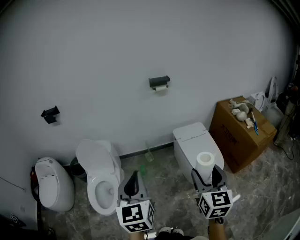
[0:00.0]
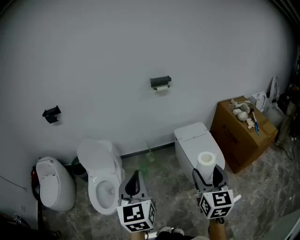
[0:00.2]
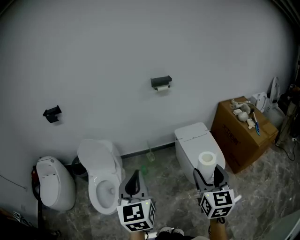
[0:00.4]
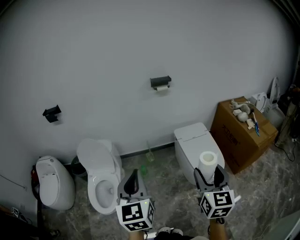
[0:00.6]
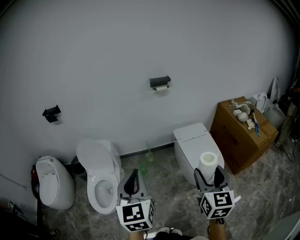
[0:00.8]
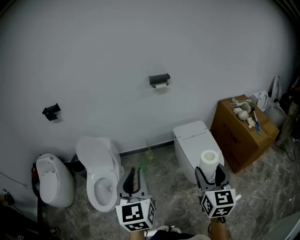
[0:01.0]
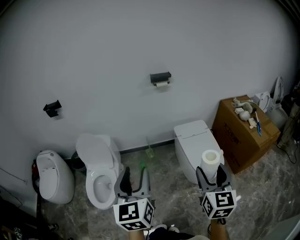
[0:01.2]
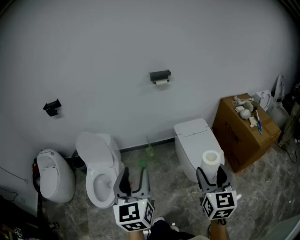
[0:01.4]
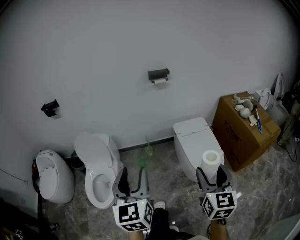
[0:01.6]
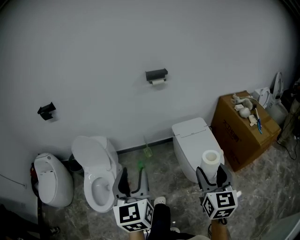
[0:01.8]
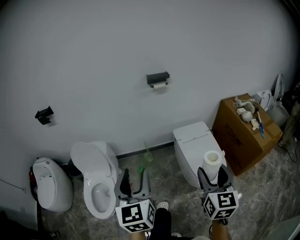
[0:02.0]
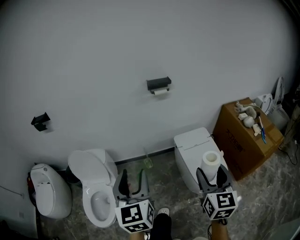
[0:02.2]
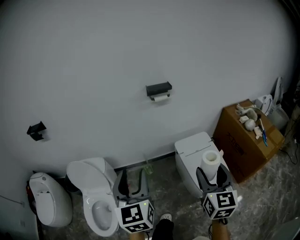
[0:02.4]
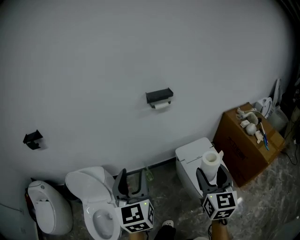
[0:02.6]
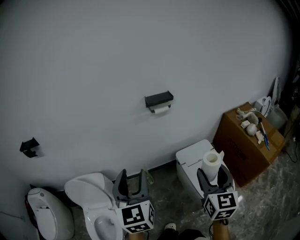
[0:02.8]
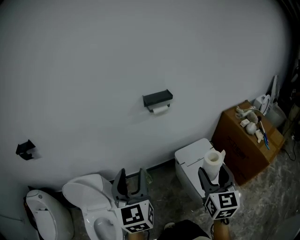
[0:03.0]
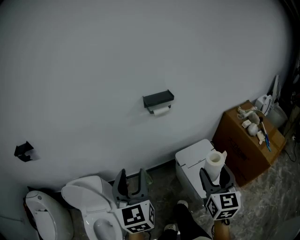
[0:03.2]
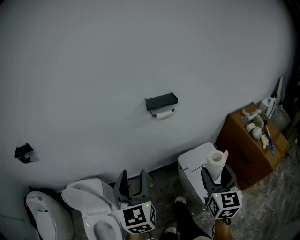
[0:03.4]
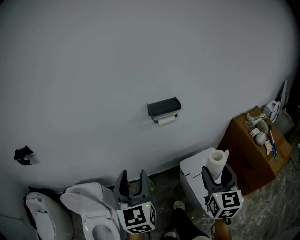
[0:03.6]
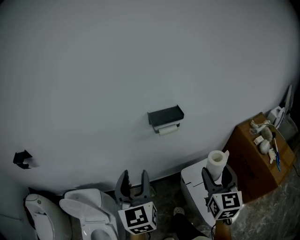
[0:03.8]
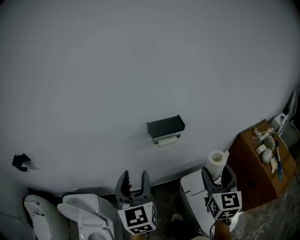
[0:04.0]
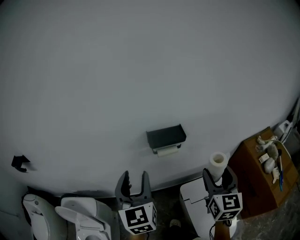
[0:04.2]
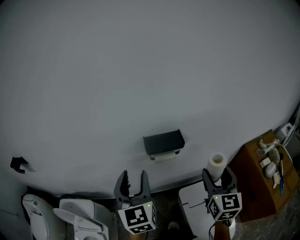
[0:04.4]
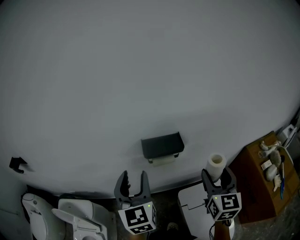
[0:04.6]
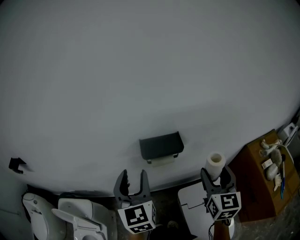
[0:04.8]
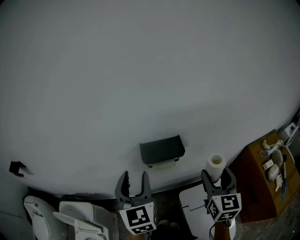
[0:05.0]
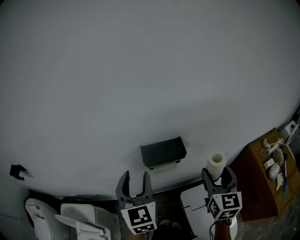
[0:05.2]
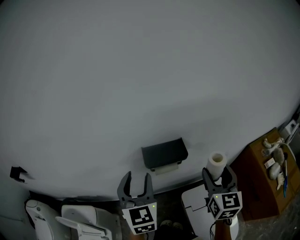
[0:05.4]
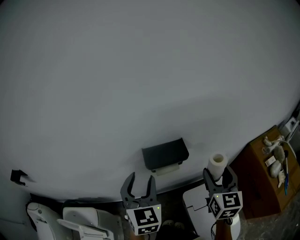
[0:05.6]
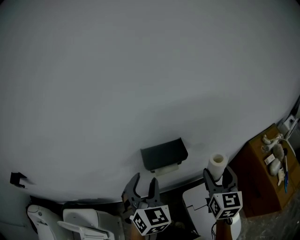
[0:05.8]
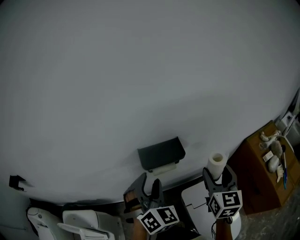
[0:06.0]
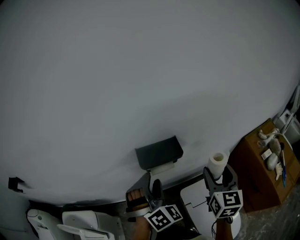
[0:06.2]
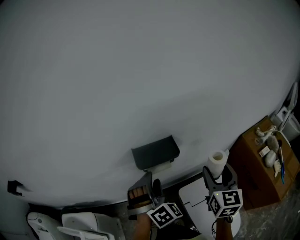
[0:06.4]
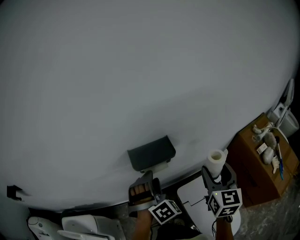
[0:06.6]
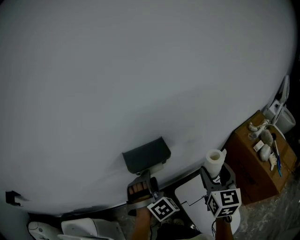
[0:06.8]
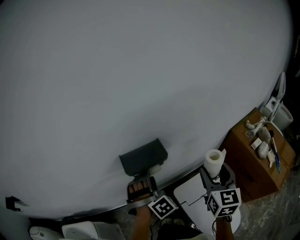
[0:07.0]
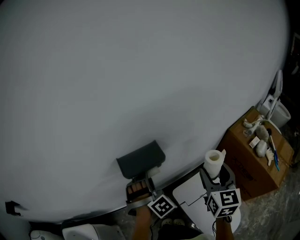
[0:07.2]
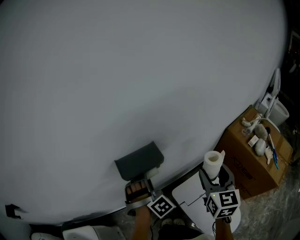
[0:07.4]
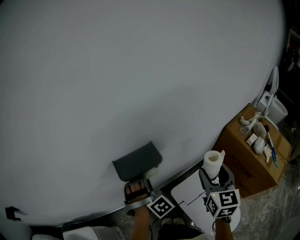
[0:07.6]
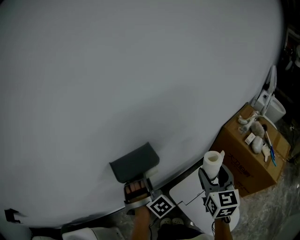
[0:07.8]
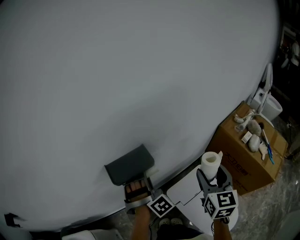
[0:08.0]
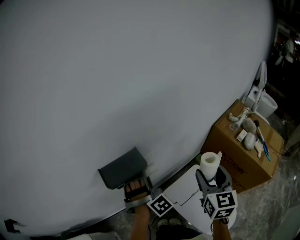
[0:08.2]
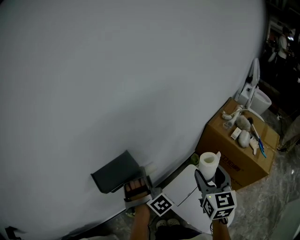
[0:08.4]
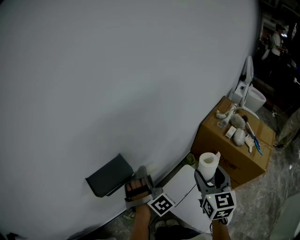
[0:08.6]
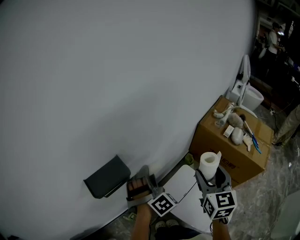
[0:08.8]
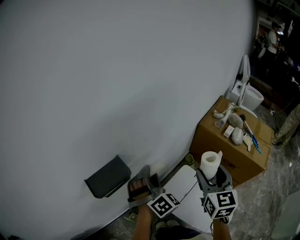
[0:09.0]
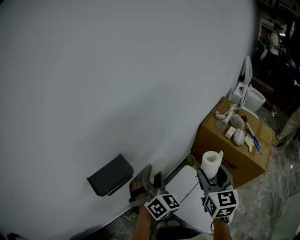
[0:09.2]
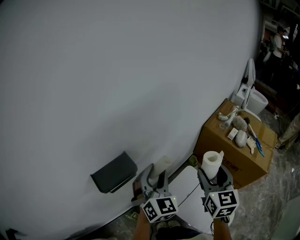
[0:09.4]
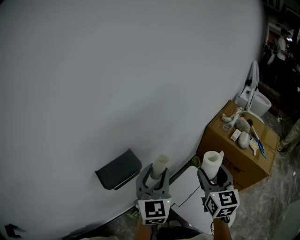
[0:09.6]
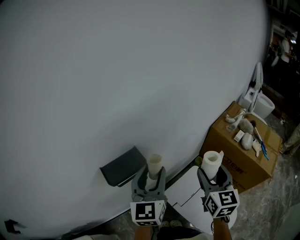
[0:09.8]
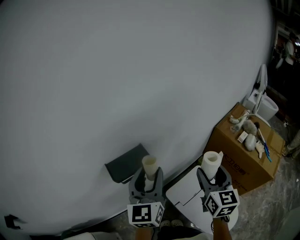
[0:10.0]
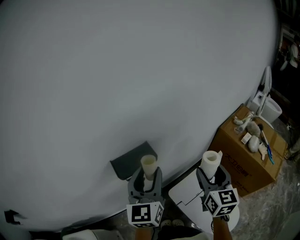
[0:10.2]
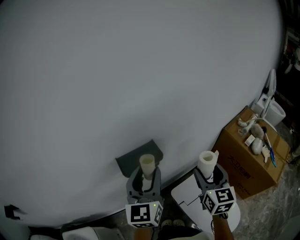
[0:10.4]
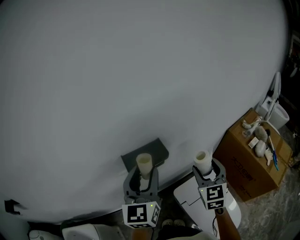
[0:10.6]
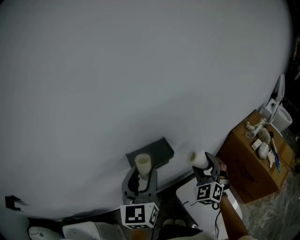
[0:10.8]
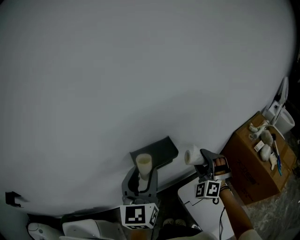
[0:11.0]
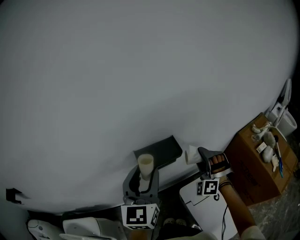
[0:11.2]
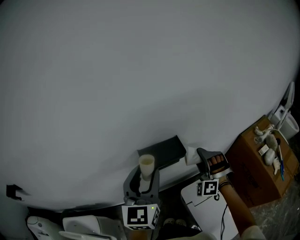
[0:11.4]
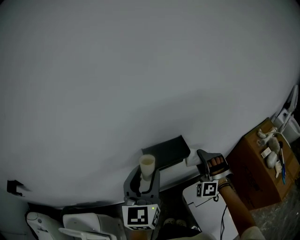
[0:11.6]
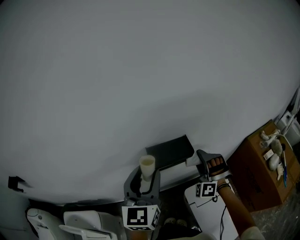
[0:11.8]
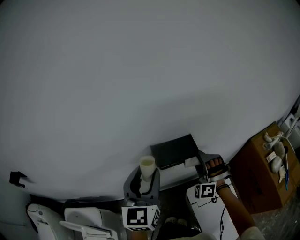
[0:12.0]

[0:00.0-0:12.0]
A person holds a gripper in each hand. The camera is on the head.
0:00.0 to 0:01.6: The left gripper opens up; the right gripper shifts about 5 cm to the right.
0:01.6 to 0:03.0: Both grippers move forward, about 35 cm.
0:03.0 to 0:04.4: Both grippers travel together forward, about 35 cm.
0:04.4 to 0:06.0: The right gripper shifts roughly 5 cm forward; the left gripper is displaced forward, to the right and downward by roughly 10 cm, and twists roughly 40 degrees clockwise, seen from behind.
0:06.0 to 0:07.6: The left gripper is displaced downward and forward by about 10 cm, and swivels roughly 40 degrees. The right gripper goes approximately 5 cm to the right.
0:07.6 to 0:09.0: The left gripper goes about 15 cm to the right, and swivels roughly 30 degrees. The right gripper moves to the right, roughly 10 cm.
0:09.0 to 0:10.4: The right gripper travels to the left by about 10 cm. Meanwhile the left gripper heads to the left, upward and backward, covering some 20 cm, and rolls counterclockwise, seen from behind, by about 60 degrees.
0:10.4 to 0:12.0: The right gripper travels to the left, forward and downward by approximately 20 cm, and twists approximately 90 degrees counterclockwise, seen from behind. Meanwhile the left gripper goes some 10 cm to the left.

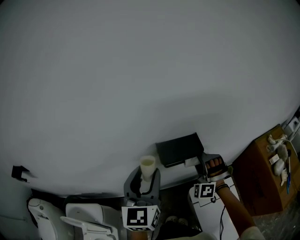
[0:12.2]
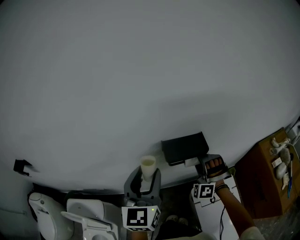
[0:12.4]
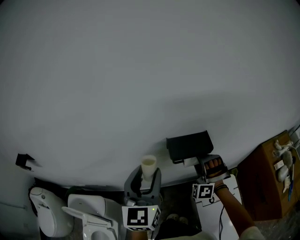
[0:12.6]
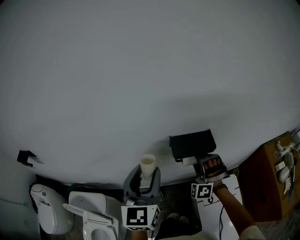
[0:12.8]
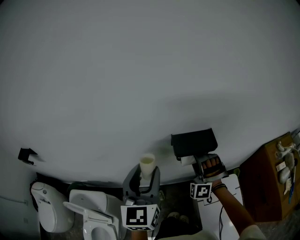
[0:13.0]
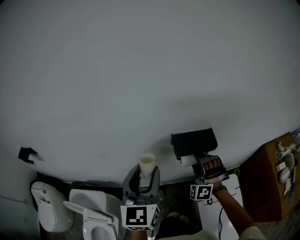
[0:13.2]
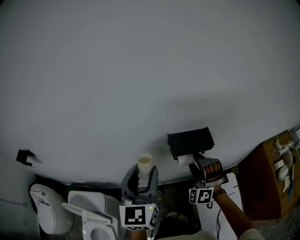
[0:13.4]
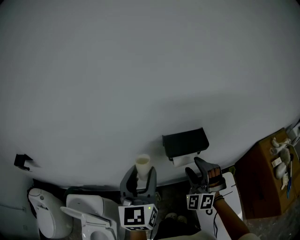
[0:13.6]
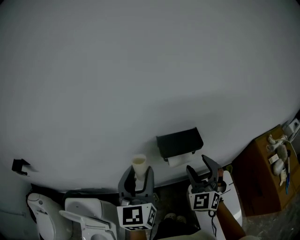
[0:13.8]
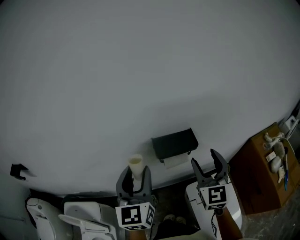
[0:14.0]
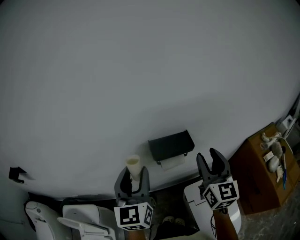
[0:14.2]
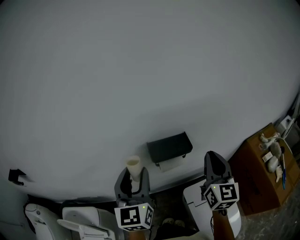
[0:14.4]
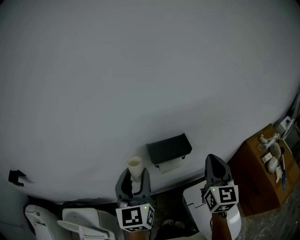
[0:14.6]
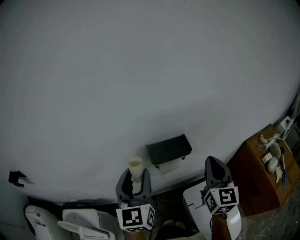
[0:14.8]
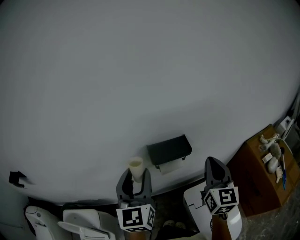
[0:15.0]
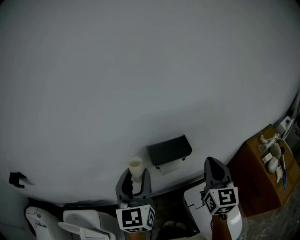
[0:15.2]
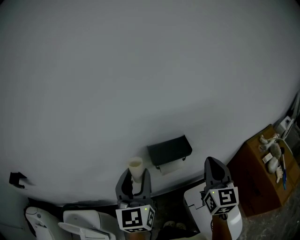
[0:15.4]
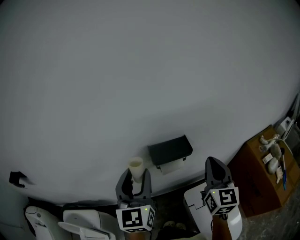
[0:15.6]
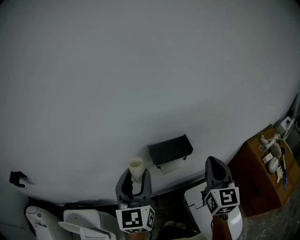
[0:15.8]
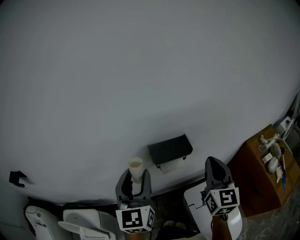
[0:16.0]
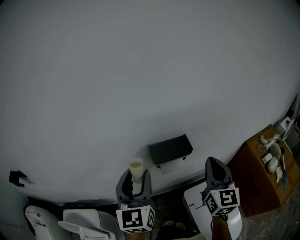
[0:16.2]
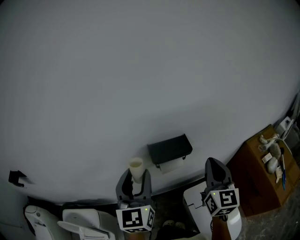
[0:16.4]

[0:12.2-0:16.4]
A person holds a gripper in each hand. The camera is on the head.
0:12.2 to 0:13.6: The right gripper travels backward and to the left by some 10 cm, and rotates roughly 20 degrees.
0:13.6 to 0:15.0: The right gripper heads to the right and upward, covering roughly 15 cm, rolls clockwise, seen from behind, by roughly 70 degrees, and closes its fingers.
0:15.0 to 0:16.4: Neither gripper changes place.

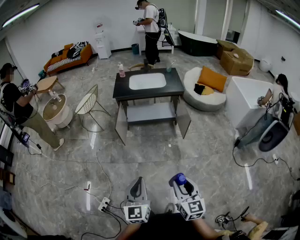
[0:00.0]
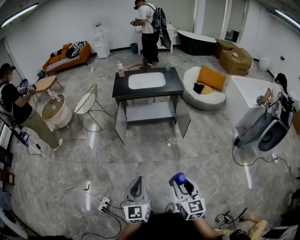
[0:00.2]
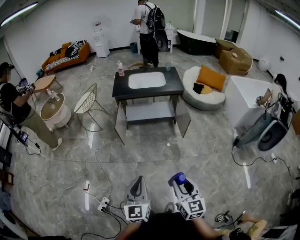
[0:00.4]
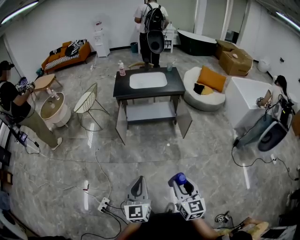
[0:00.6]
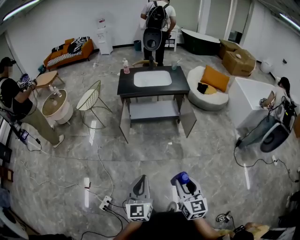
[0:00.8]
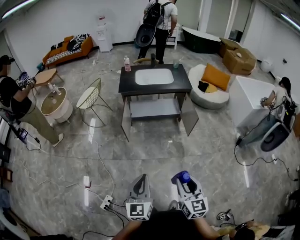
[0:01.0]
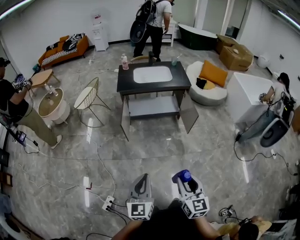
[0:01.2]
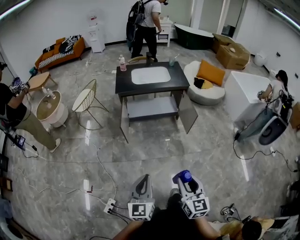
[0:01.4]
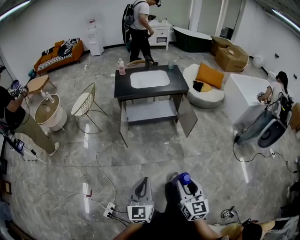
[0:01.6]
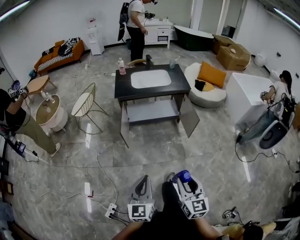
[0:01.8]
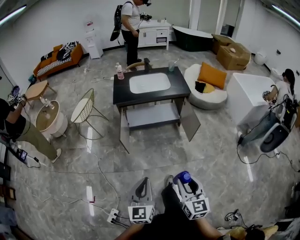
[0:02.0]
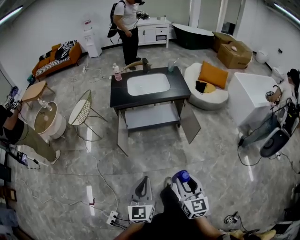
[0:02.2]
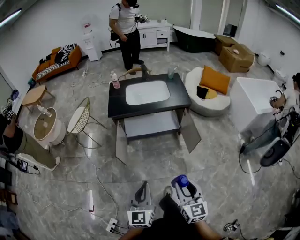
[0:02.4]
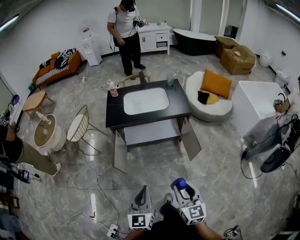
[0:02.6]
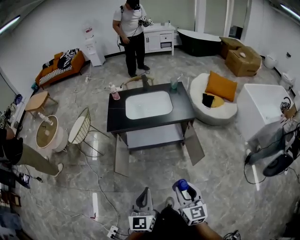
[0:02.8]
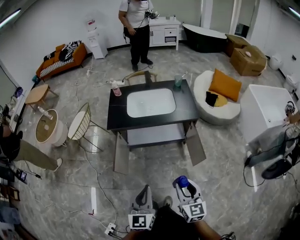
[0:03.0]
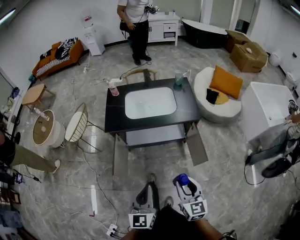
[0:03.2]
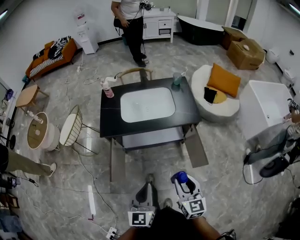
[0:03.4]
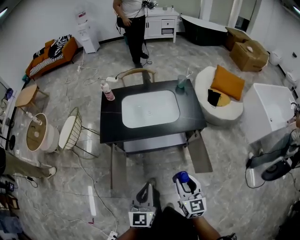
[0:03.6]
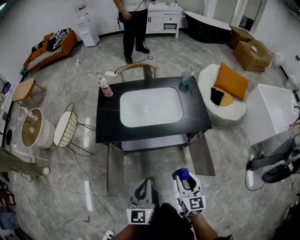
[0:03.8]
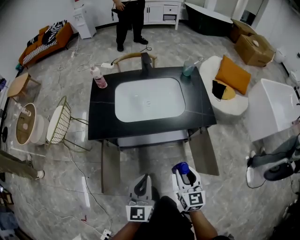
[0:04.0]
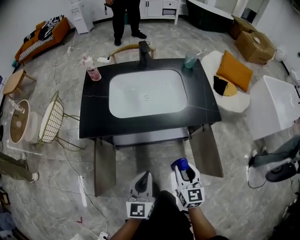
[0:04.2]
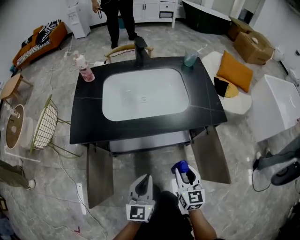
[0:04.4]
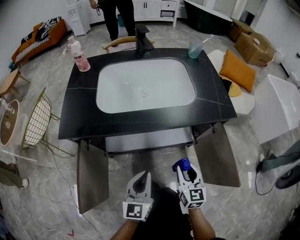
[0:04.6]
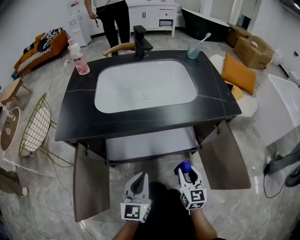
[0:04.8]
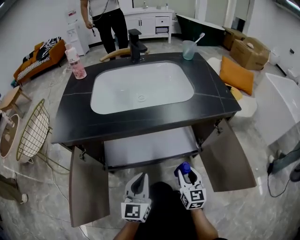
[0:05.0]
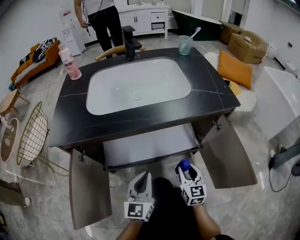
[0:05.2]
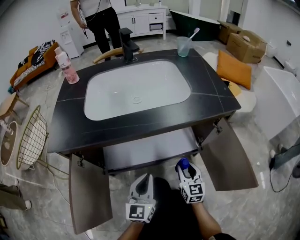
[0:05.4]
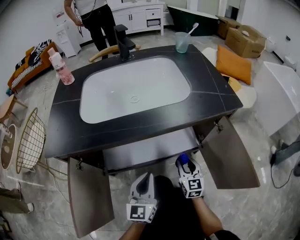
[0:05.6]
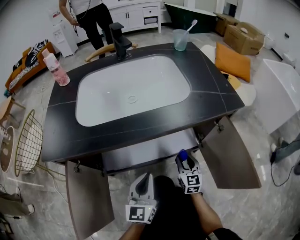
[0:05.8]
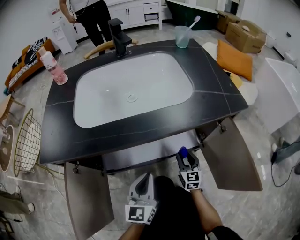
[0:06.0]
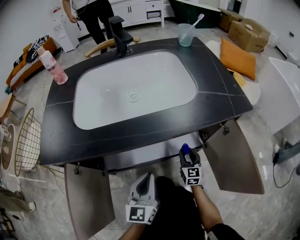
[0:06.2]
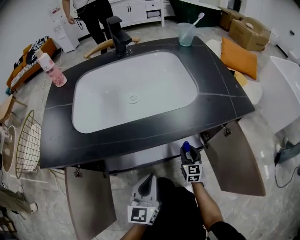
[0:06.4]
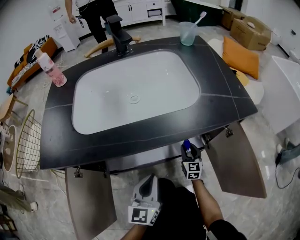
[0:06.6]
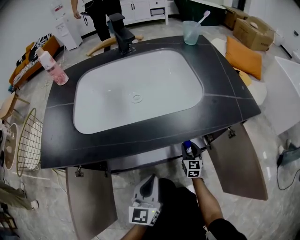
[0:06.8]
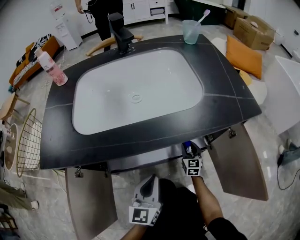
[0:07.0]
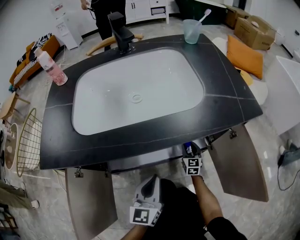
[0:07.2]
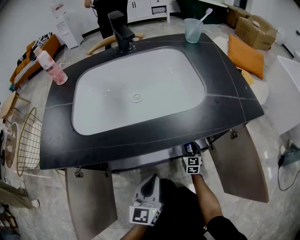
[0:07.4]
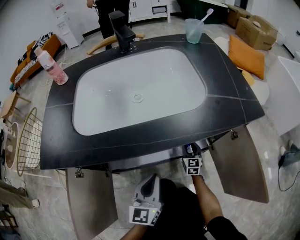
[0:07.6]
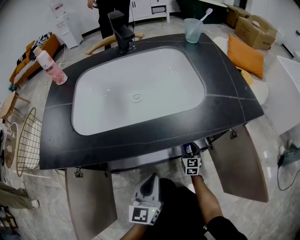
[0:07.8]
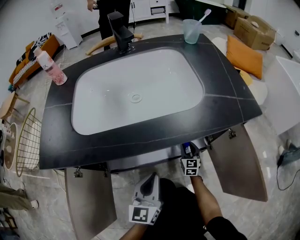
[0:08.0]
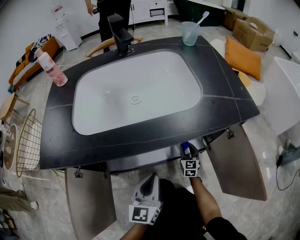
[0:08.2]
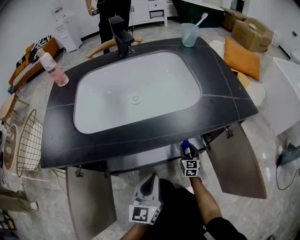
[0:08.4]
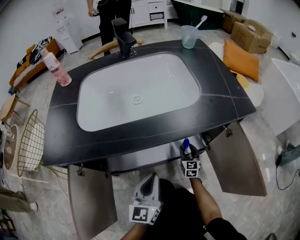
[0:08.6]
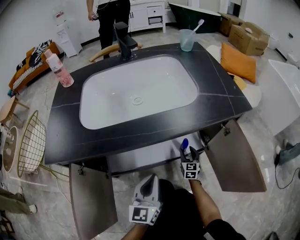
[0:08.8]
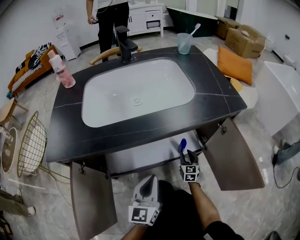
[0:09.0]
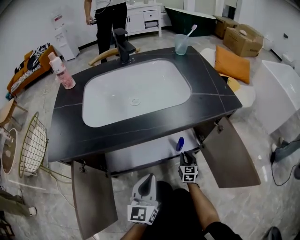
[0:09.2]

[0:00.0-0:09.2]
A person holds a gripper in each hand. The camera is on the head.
0:00.0 to 0:01.6: The grippers both shift to the left and forward by some 15 cm.
0:01.6 to 0:03.0: The two grippers go some 40 cm forward.
0:03.0 to 0:04.6: The two grippers go approximately 60 cm downward and forward.
0:04.6 to 0:06.2: The right gripper shifts roughly 30 cm downward and forward. The left gripper is displaced downward and forward by roughly 15 cm.
0:06.2 to 0:07.6: The right gripper travels forward and downward by some 10 cm.
0:07.6 to 0:09.2: The left gripper ends up approximately 5 cm from where it was. The right gripper moves backward, about 10 cm.
